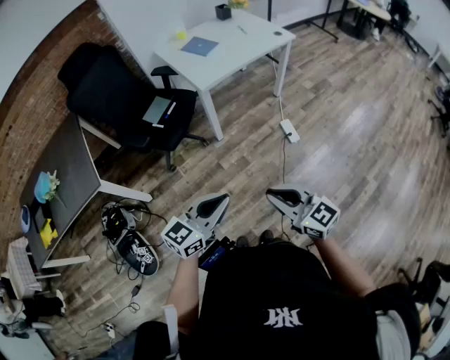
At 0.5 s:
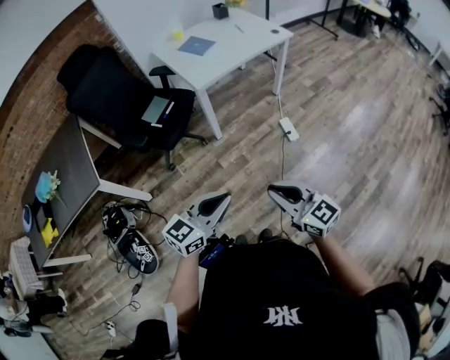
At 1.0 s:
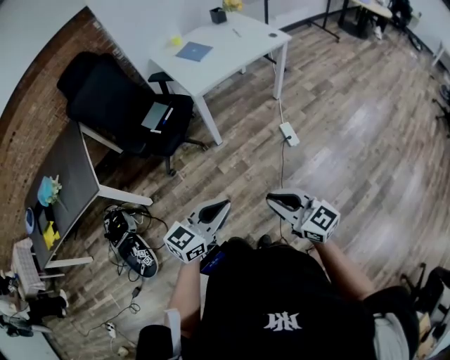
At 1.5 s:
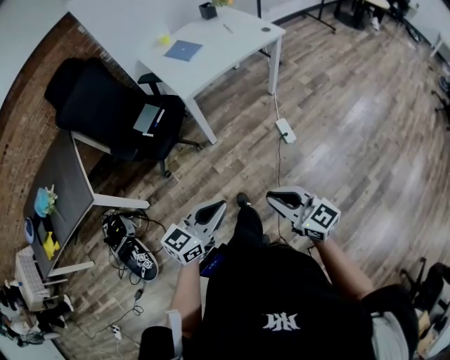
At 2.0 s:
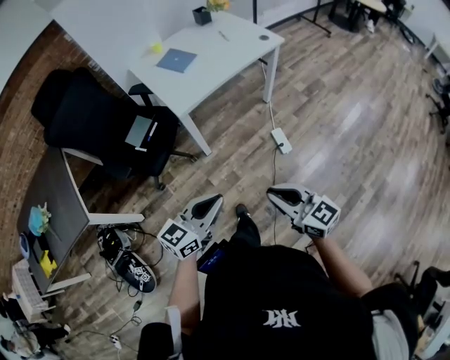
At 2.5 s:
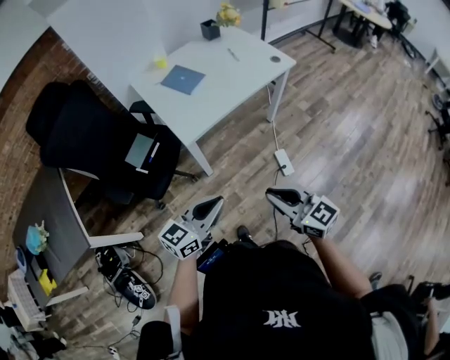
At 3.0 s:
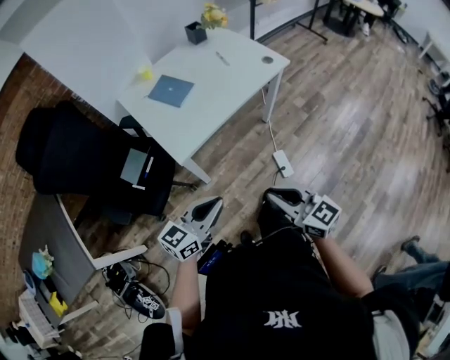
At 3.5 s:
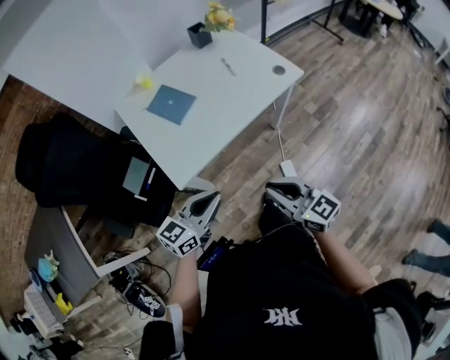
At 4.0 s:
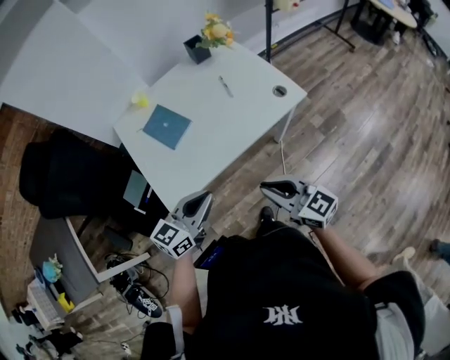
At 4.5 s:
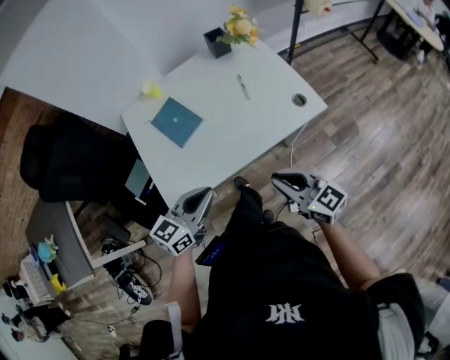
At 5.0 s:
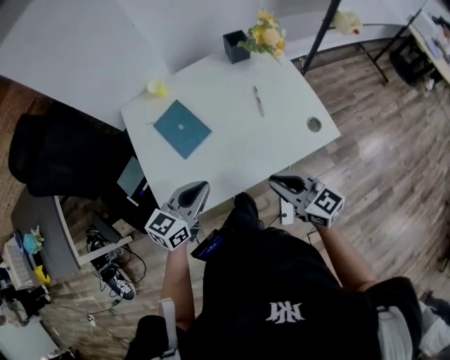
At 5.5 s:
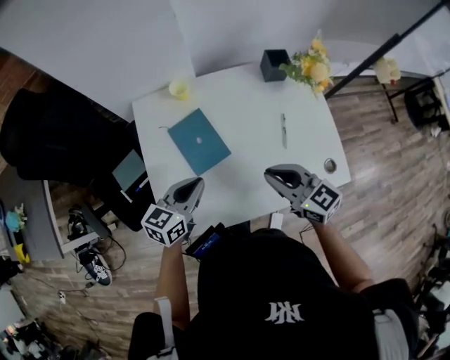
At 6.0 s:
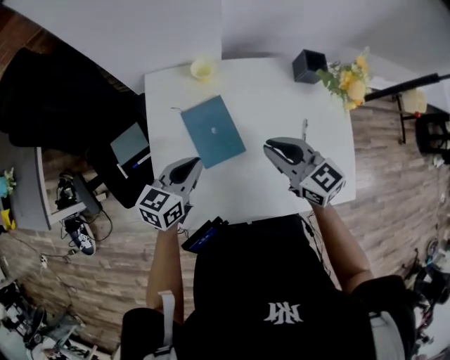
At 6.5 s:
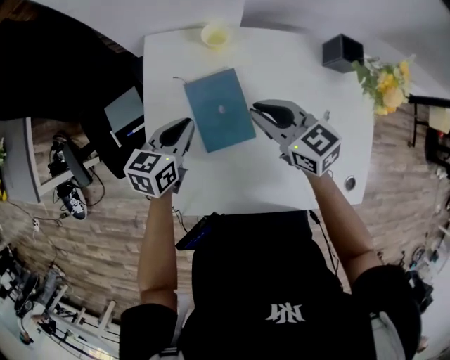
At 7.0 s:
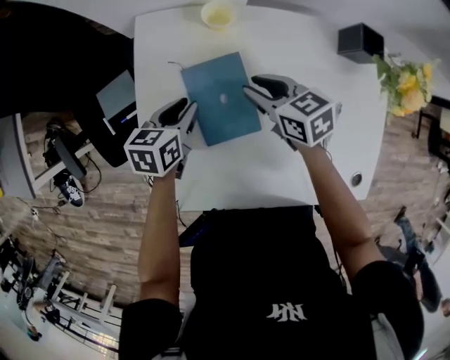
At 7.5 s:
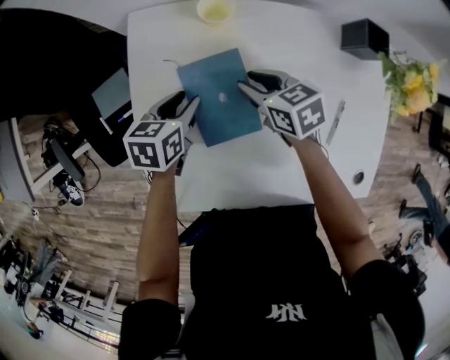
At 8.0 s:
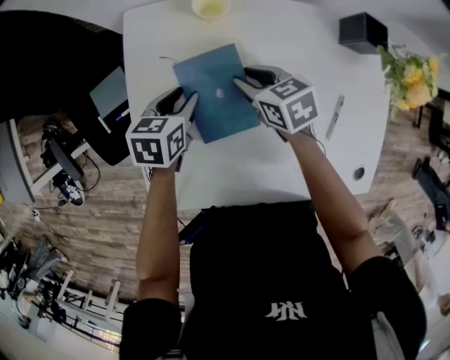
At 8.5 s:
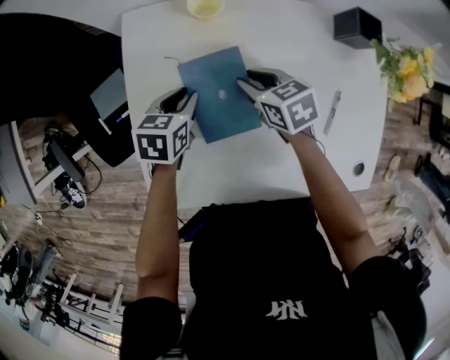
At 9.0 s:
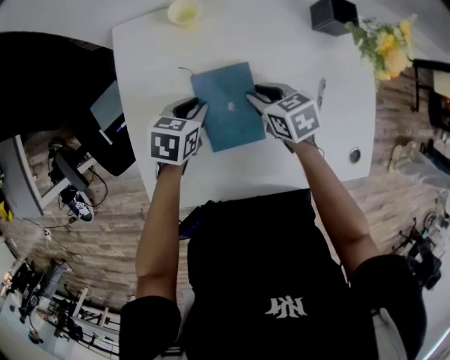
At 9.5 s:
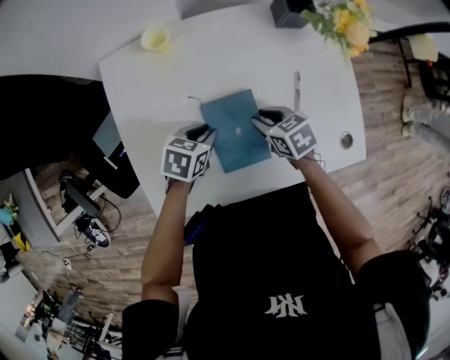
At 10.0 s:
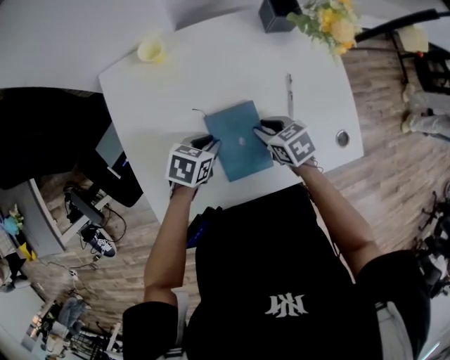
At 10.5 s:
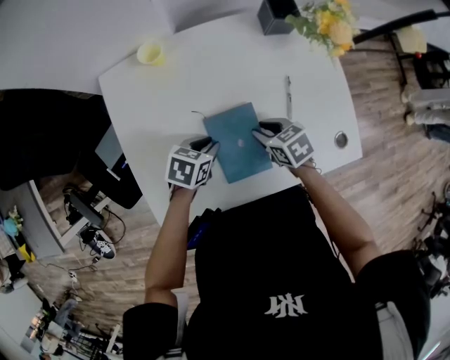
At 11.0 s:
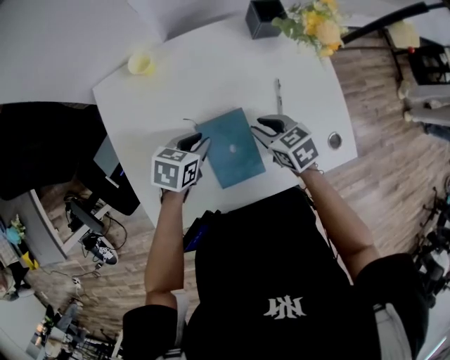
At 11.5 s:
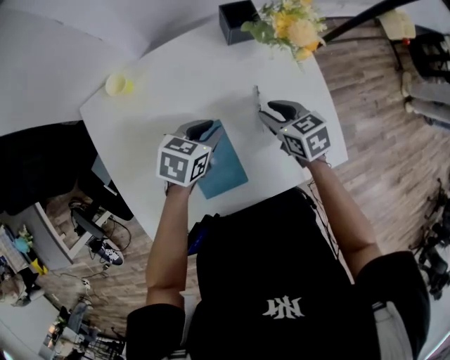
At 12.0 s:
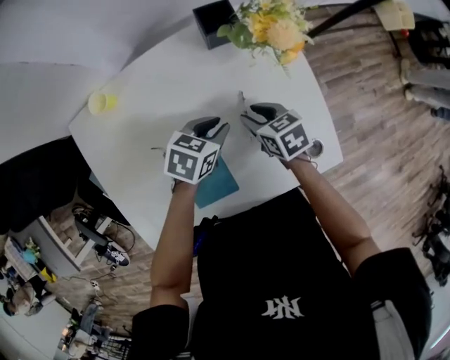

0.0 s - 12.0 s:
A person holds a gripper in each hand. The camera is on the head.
0.0 s - 2.0 s: The two grippers go about 20 cm forward and to the right.
2.0 s - 4.0 s: The pair of grippers is taken forward, some 50 cm.
4.0 s - 6.0 s: The right gripper ends up roughly 40 cm from where it was, and rotates roughly 30 degrees. Meanwhile the left gripper changes place by approximately 35 cm, and swivels approximately 40 degrees.
6.0 s - 8.0 s: The grippers both shift downward and forward by about 20 cm. The left gripper turns by about 30 degrees, and opens its fingers. The right gripper turns by approximately 30 degrees, and opens its fingers.
8.0 s - 10.0 s: The left gripper moves approximately 20 cm, and changes its angle by roughly 30 degrees. Meanwhile the right gripper moves about 20 cm.
10.0 s - 12.0 s: The grippers both shift to the right and forward by roughly 20 cm.

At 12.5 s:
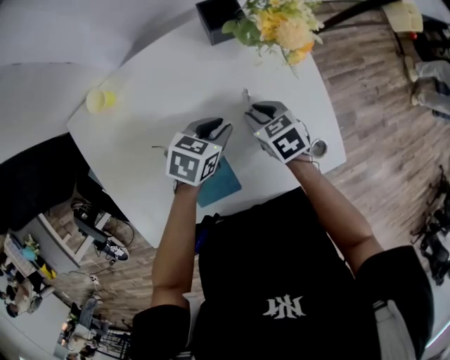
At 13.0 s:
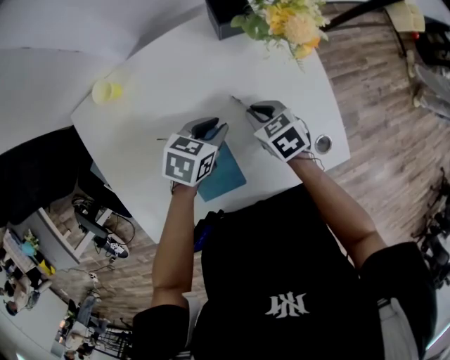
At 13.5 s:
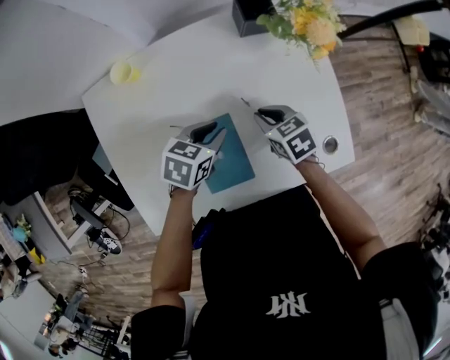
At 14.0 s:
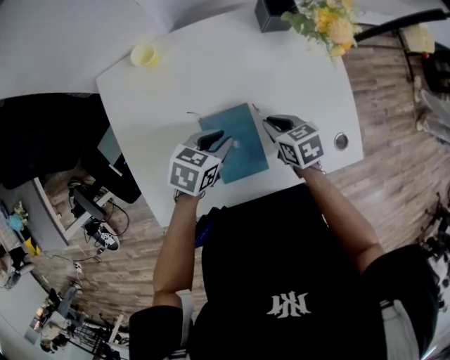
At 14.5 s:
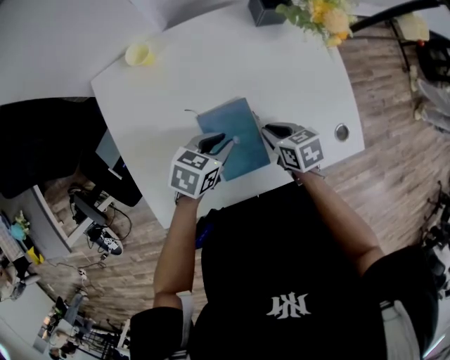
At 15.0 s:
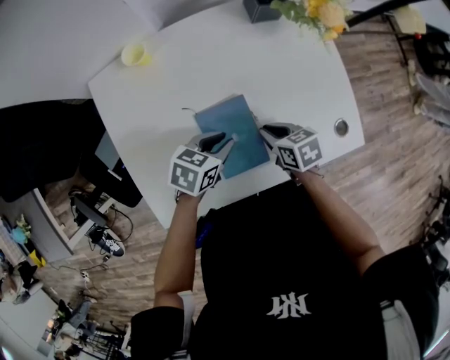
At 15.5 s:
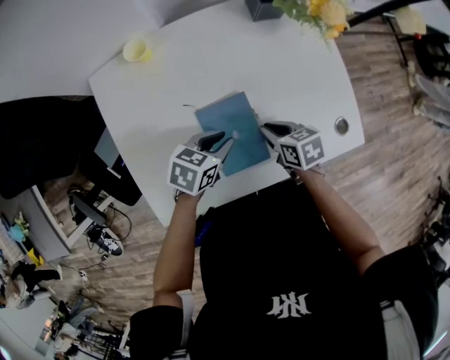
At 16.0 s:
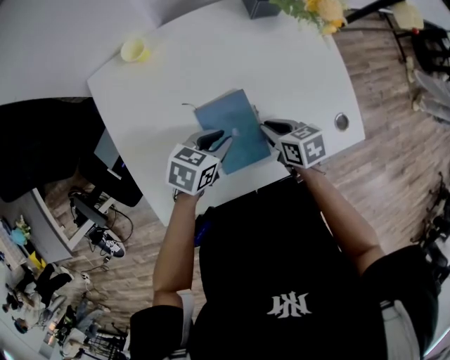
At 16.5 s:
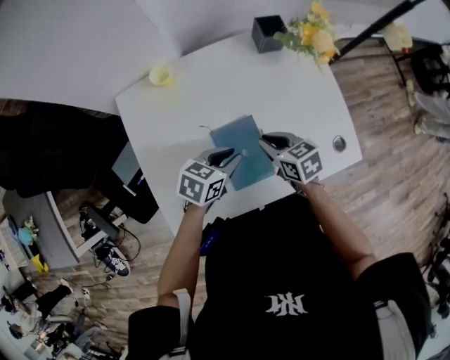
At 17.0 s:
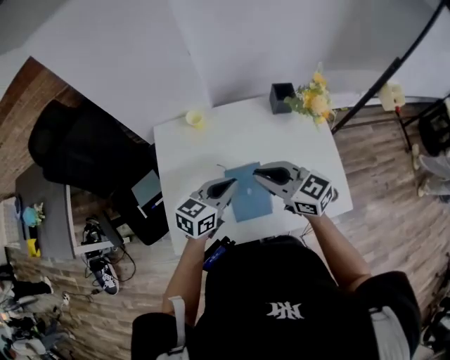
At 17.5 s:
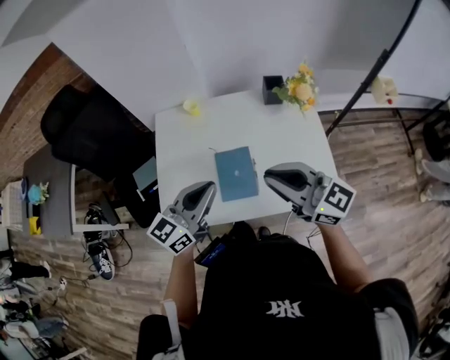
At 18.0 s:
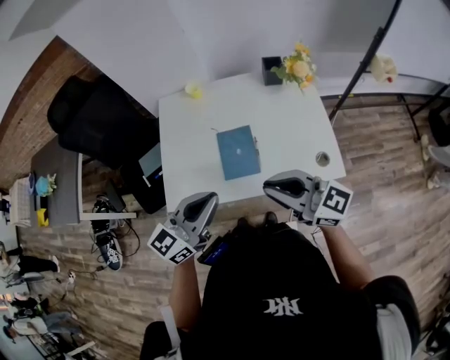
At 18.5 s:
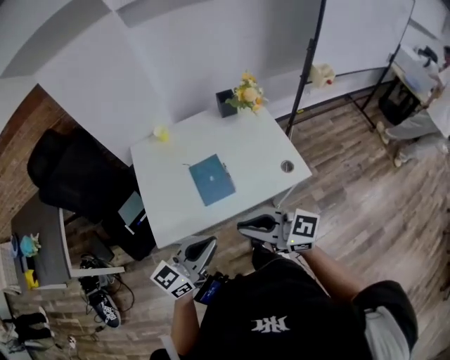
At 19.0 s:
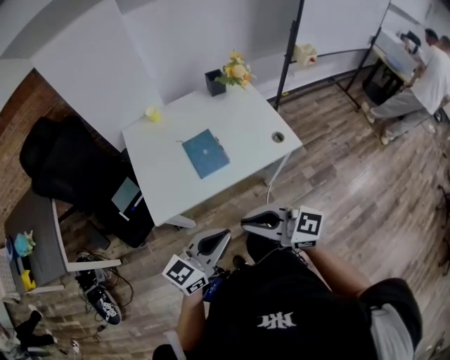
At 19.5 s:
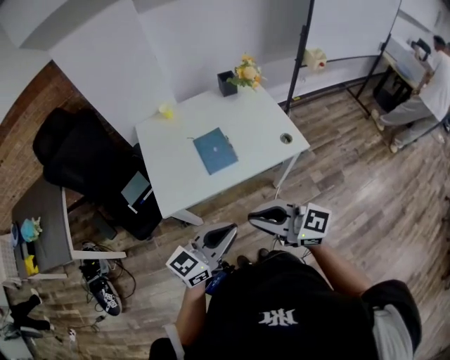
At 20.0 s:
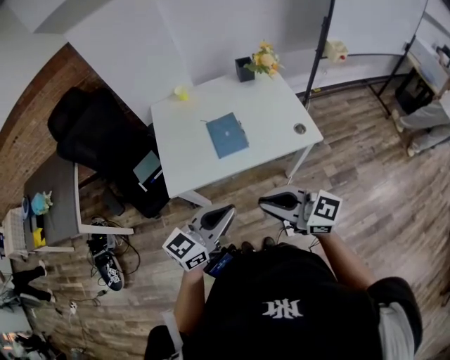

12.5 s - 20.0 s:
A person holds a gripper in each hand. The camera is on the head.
12.5 s - 14.5 s: The grippers both shift backward and to the left by some 15 cm.
14.5 s - 16.5 s: The right gripper goes approximately 5 cm upward.
16.5 s - 18.0 s: Both grippers travel together upward, roughly 25 cm. The left gripper angles its fingers upward, by some 40 degrees. The right gripper tips its fingers upward by about 50 degrees.
18.0 s - 20.0 s: Both grippers move backward, about 20 cm.

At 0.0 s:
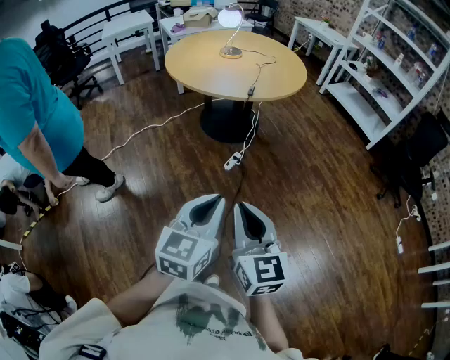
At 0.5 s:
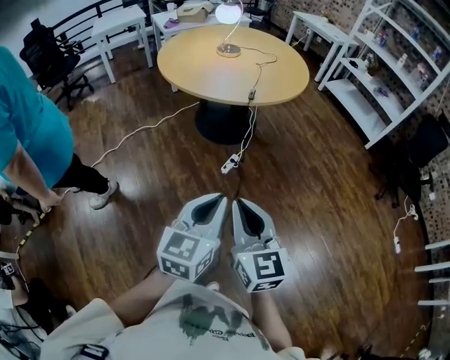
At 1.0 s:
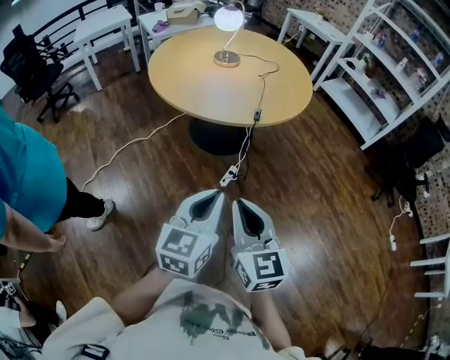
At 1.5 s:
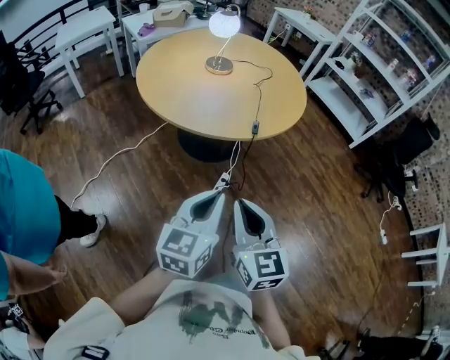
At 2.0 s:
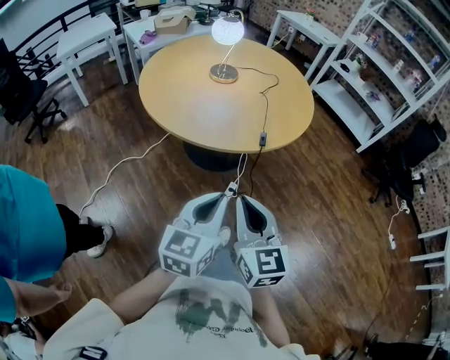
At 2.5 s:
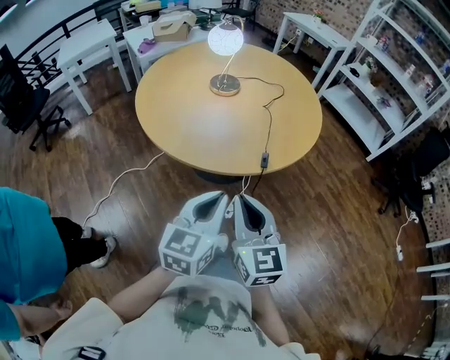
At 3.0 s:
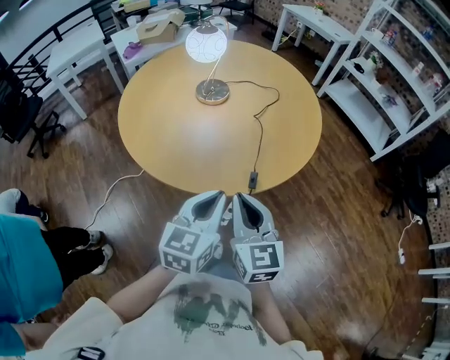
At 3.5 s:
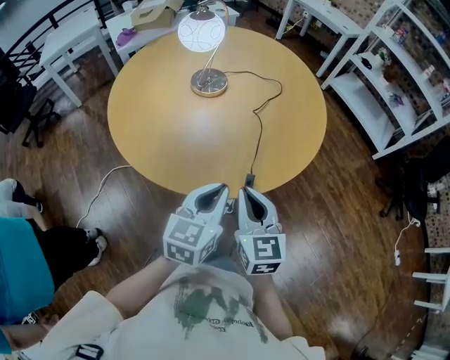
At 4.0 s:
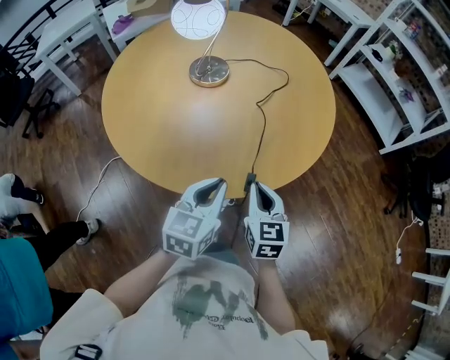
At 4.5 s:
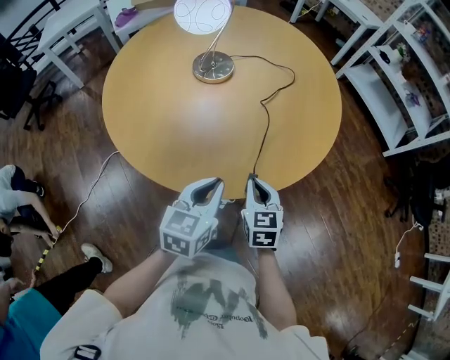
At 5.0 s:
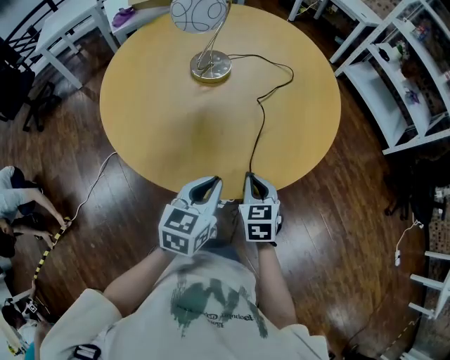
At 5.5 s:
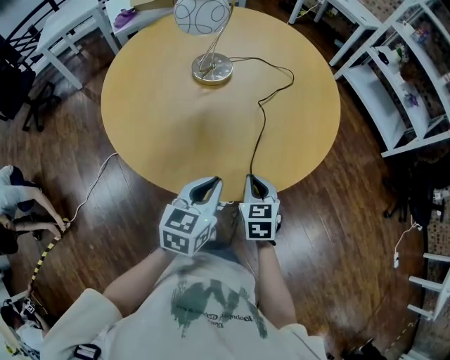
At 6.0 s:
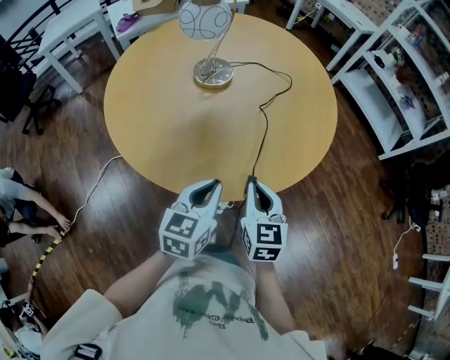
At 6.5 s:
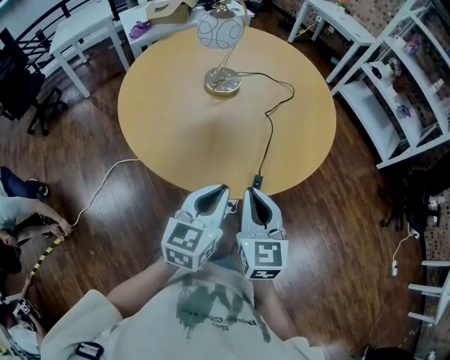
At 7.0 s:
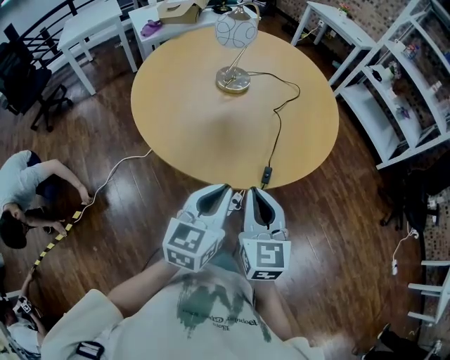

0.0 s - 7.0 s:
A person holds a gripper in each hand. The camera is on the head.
0.0 s - 2.0 s: The two grippers travel together, forward and to the left, approximately 40 cm.
2.0 s - 3.5 s: Both grippers travel together forward, some 30 cm.
3.5 s - 5.0 s: The right gripper heads downward and forward, covering roughly 15 cm, and swivels roughly 20 degrees. Meanwhile the left gripper heads downward, covering roughly 5 cm.
5.0 s - 7.0 s: The left gripper is displaced upward and backward by roughly 15 cm; the right gripper shifts roughly 25 cm upward, backward and to the left, and rotates about 20 degrees.
